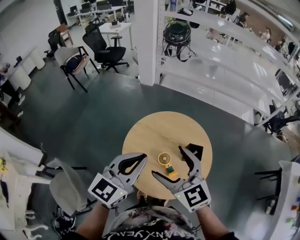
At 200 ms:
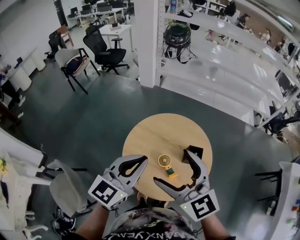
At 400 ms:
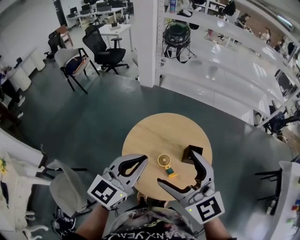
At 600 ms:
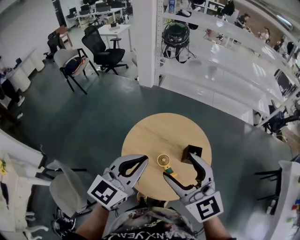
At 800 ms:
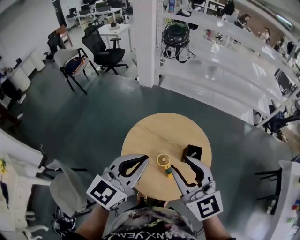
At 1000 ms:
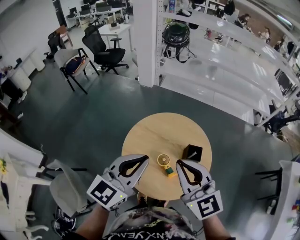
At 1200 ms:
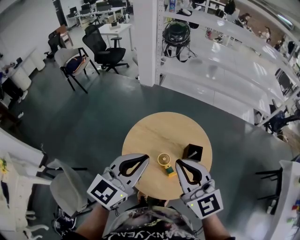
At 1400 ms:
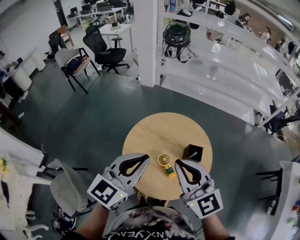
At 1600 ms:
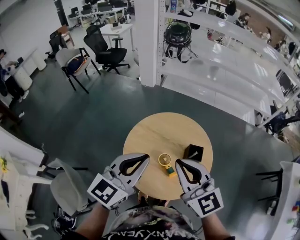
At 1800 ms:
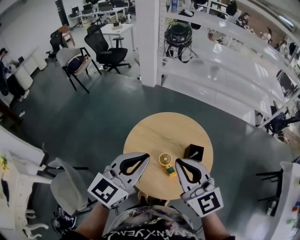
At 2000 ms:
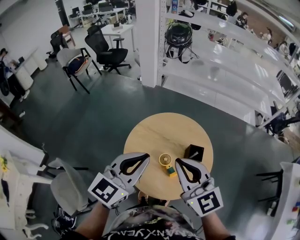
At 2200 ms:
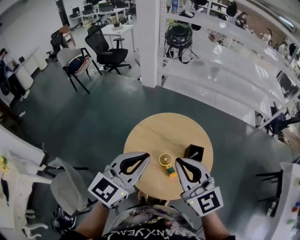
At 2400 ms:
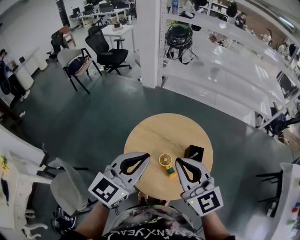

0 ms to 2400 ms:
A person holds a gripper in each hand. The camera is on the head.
0 ms to 1200 ms: The right gripper shifts by about 5 cm, and closes its fingers.
1200 ms to 2400 ms: Both grippers stay put.

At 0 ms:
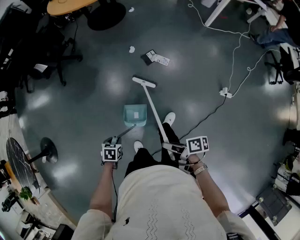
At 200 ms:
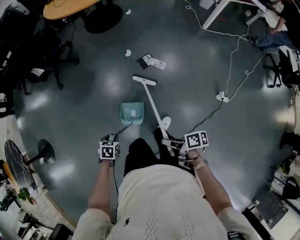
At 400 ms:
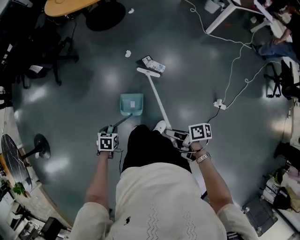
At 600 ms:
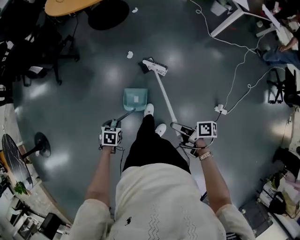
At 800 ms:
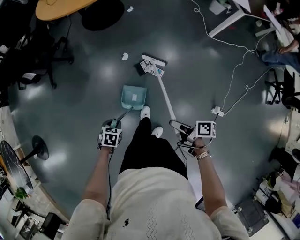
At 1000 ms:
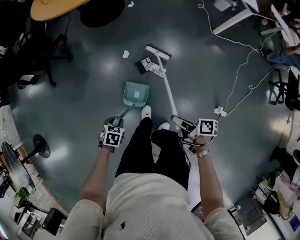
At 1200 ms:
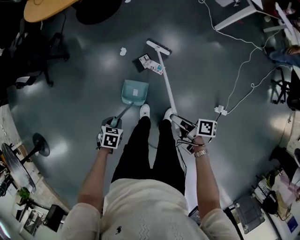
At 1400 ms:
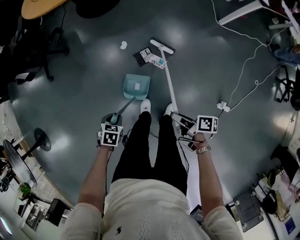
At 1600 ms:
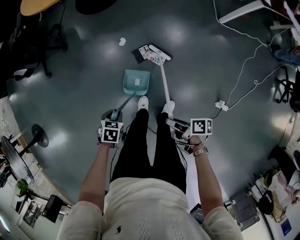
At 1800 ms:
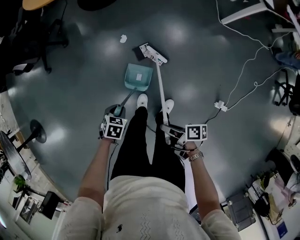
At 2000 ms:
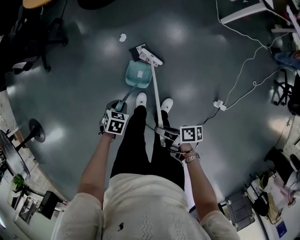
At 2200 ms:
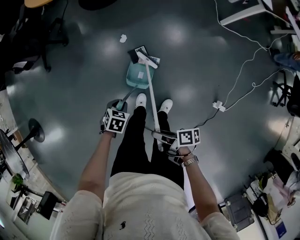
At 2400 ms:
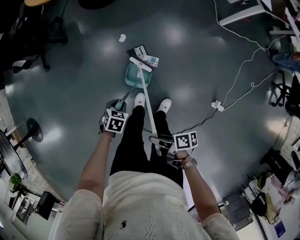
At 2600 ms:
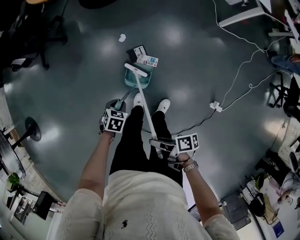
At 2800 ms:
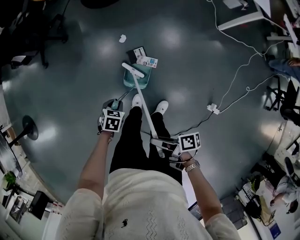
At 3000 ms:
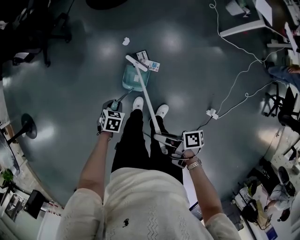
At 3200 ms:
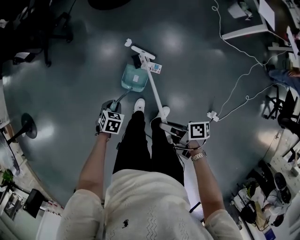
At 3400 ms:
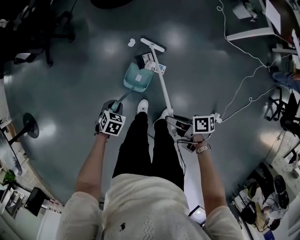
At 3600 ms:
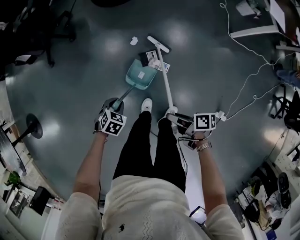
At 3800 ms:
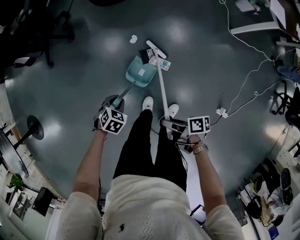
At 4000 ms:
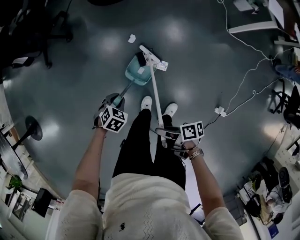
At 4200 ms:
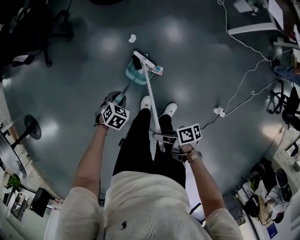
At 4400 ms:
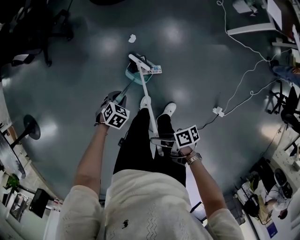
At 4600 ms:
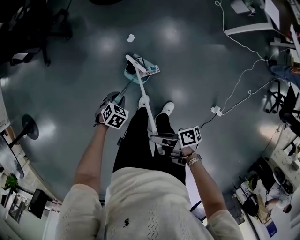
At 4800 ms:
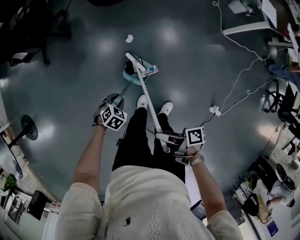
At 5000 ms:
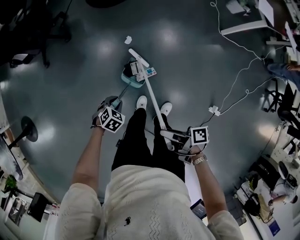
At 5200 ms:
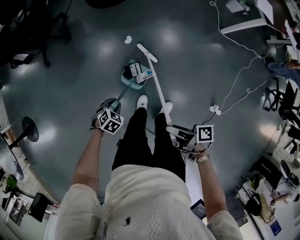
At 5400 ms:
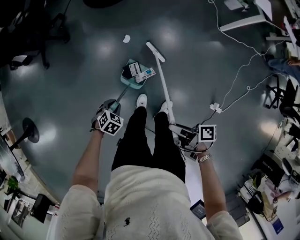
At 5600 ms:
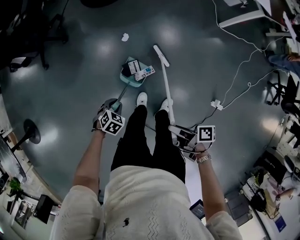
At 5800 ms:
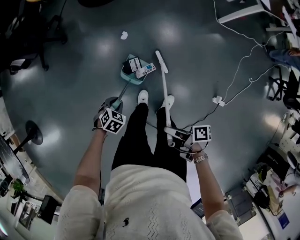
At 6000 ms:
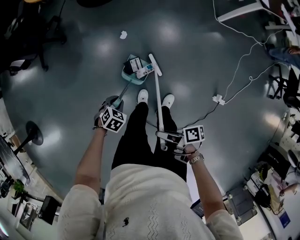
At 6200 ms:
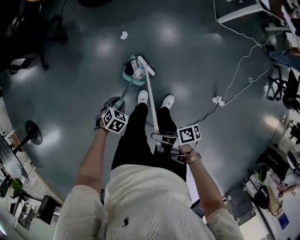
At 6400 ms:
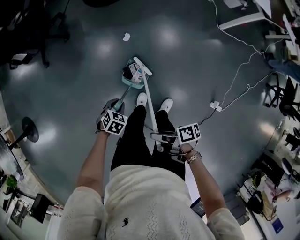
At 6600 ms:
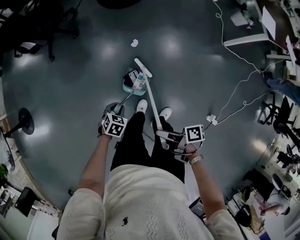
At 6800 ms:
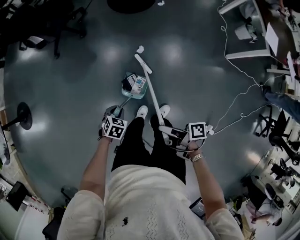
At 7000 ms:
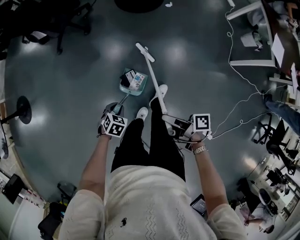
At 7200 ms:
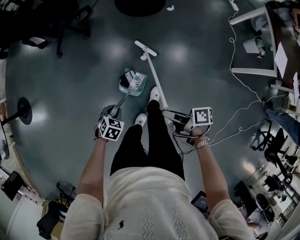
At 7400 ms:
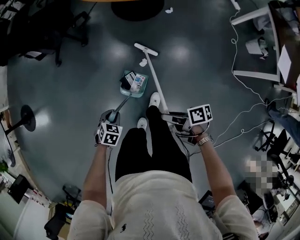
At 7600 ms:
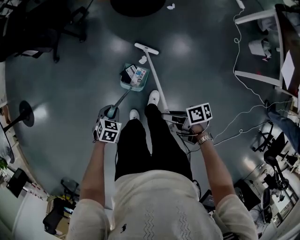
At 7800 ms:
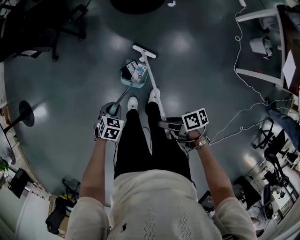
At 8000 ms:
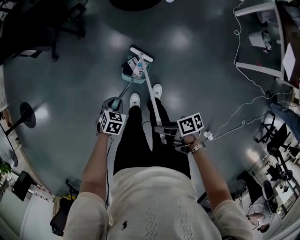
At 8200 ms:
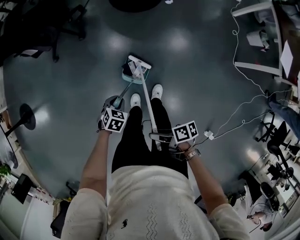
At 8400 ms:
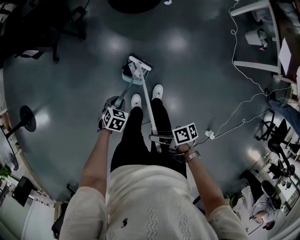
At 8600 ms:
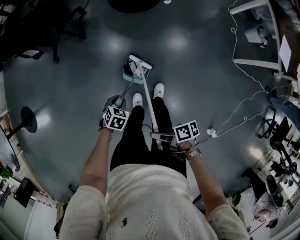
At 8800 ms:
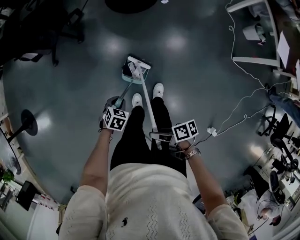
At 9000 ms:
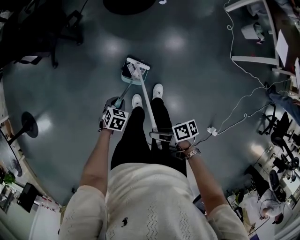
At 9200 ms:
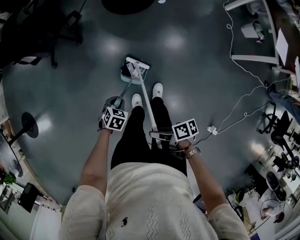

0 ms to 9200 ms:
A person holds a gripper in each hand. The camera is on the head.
0 ms to 1600 ms: The left gripper changes place by roughly 40 cm.
3000 ms to 4600 ms: The left gripper changes place by some 10 cm.
4600 ms to 6200 ms: The left gripper shifts by roughly 10 cm.
6200 ms to 7600 ms: The left gripper shifts by some 25 cm, and rotates some 30 degrees.

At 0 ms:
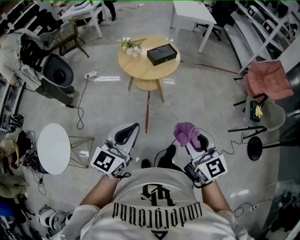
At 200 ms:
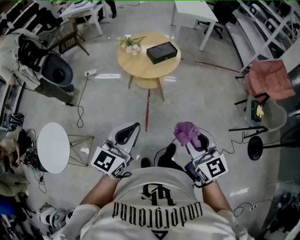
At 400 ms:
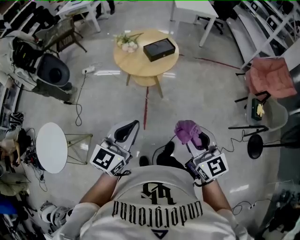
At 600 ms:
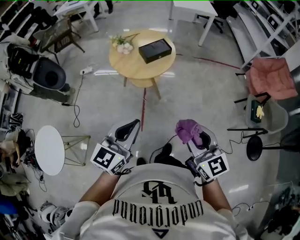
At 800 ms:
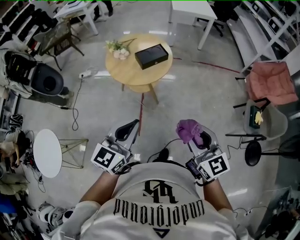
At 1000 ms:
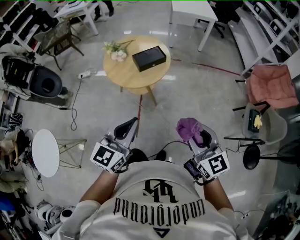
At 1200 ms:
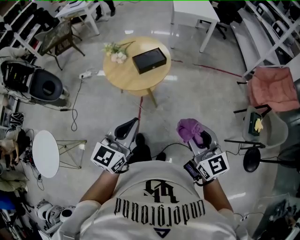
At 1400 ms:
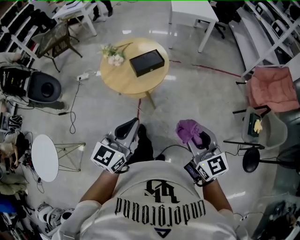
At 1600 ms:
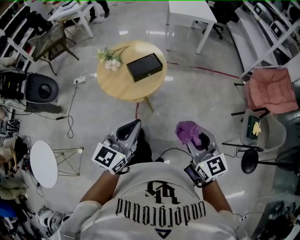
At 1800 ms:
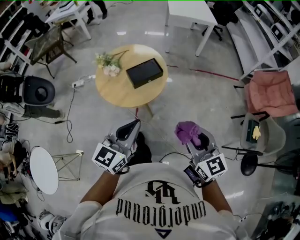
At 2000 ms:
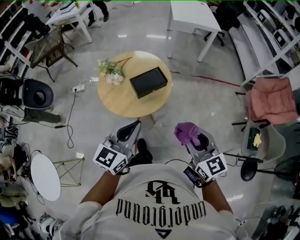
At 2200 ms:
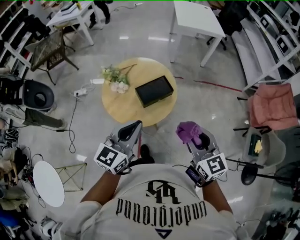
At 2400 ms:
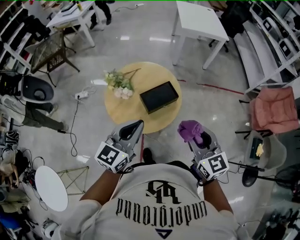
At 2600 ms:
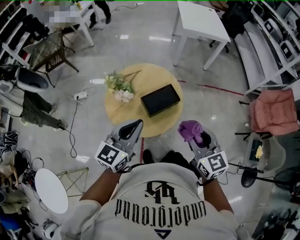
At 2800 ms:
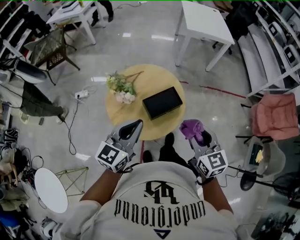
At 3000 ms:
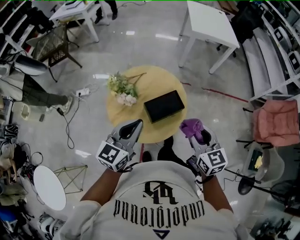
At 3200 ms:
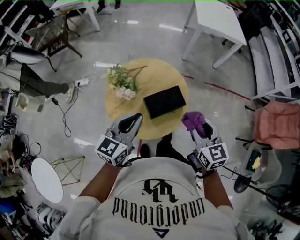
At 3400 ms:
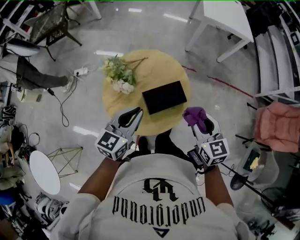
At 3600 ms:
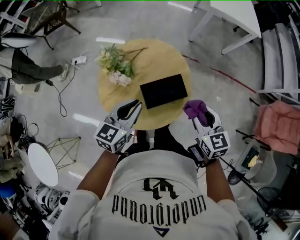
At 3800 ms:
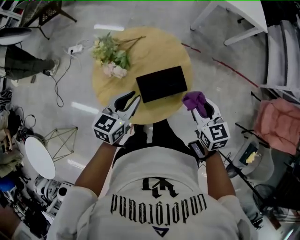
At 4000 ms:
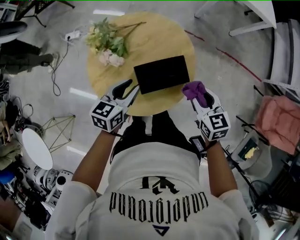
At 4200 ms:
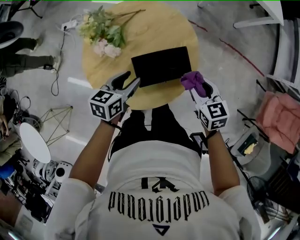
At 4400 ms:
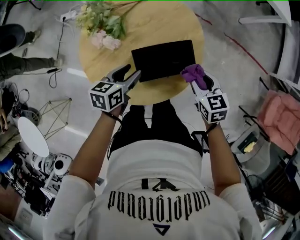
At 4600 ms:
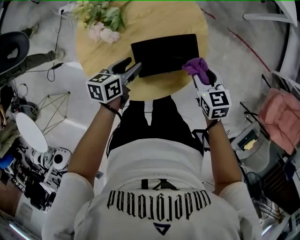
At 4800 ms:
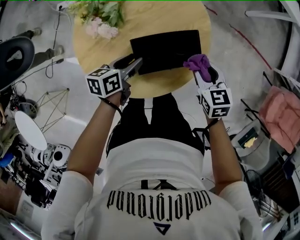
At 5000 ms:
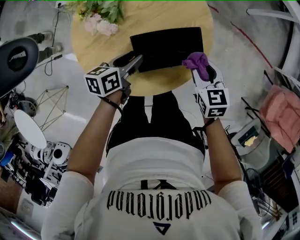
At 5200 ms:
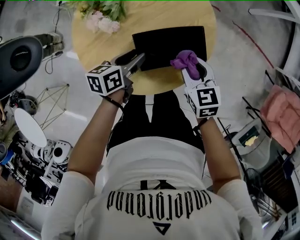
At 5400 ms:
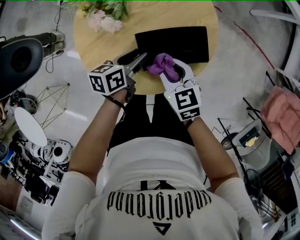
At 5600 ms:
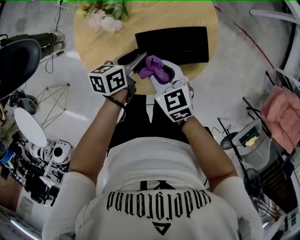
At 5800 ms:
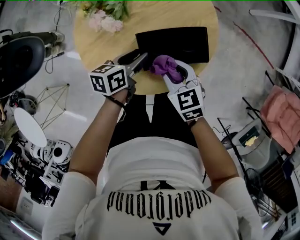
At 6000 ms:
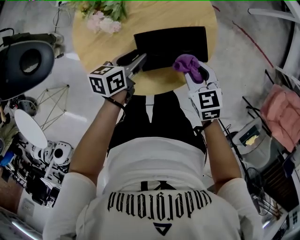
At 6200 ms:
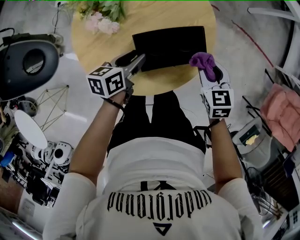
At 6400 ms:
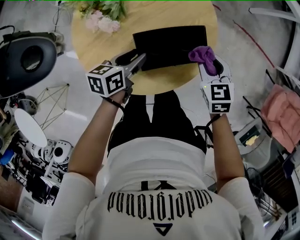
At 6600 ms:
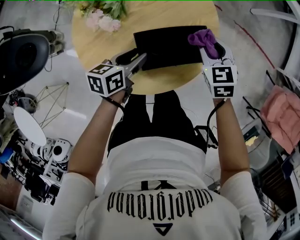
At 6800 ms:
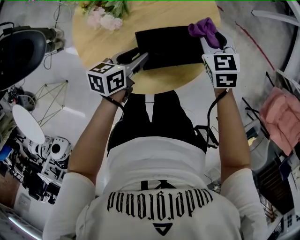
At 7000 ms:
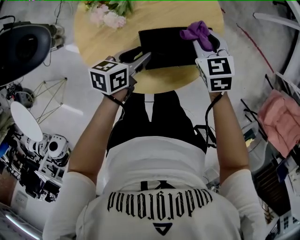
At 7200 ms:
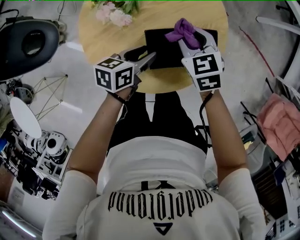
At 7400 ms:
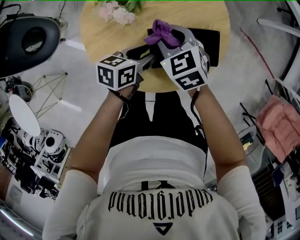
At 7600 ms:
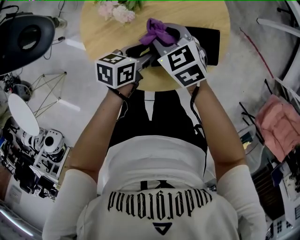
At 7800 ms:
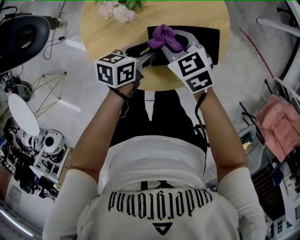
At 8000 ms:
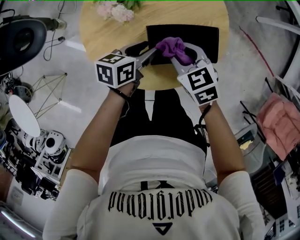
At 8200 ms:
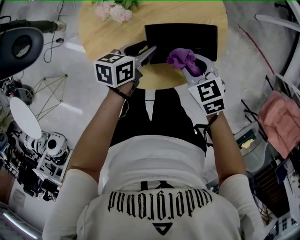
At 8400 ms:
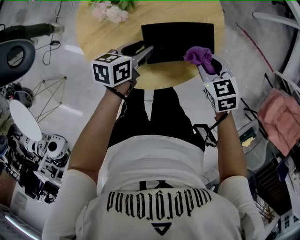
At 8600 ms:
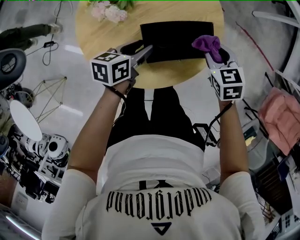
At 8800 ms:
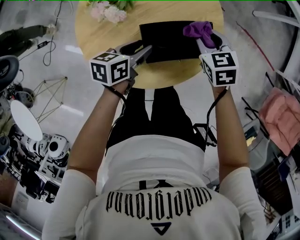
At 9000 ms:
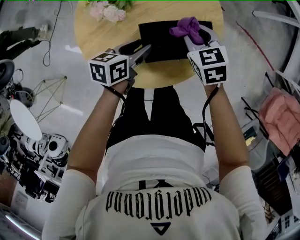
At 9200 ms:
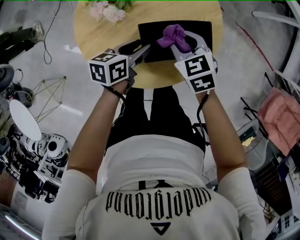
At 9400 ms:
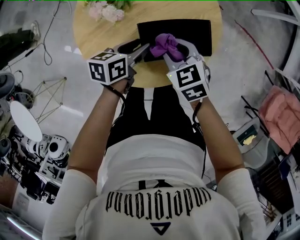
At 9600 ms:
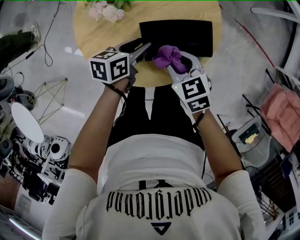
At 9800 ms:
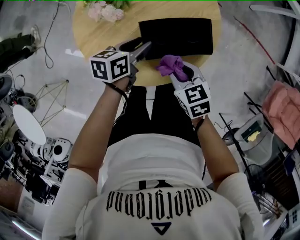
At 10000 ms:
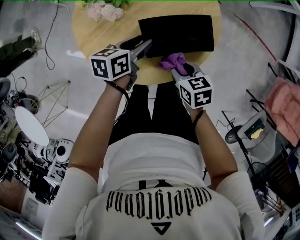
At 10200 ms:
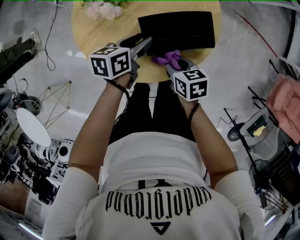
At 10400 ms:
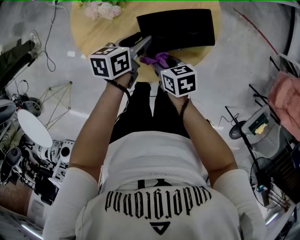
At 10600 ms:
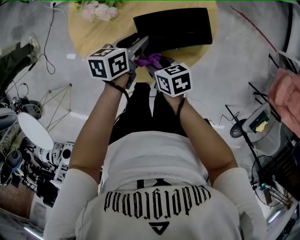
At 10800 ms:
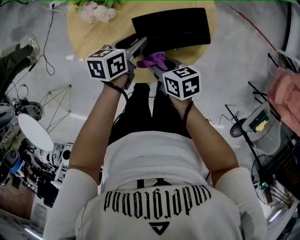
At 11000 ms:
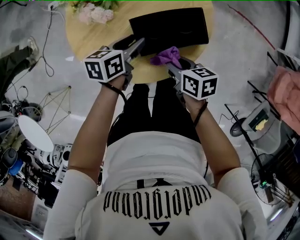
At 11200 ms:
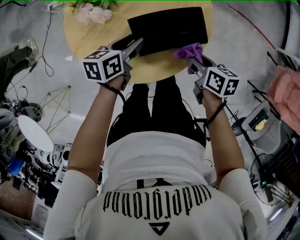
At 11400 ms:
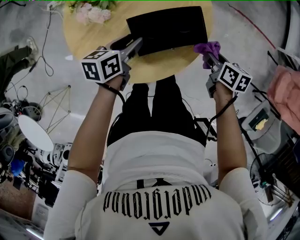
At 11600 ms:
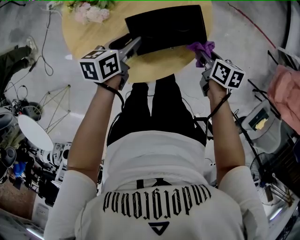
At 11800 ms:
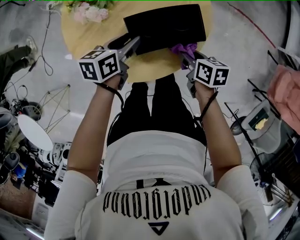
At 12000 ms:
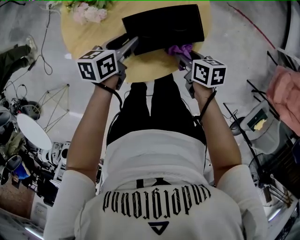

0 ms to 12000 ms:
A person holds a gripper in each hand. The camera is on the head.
0 ms to 1600 ms: Both grippers travel together forward and to the right, some 35 cm.
1600 ms to 3000 ms: The left gripper goes about 35 cm forward and to the left; the right gripper heads forward, covering some 35 cm.
3000 ms to 4400 ms: The right gripper is displaced downward and forward by approximately 35 cm, and rotates roughly 30 degrees, while the left gripper is displaced downward by approximately 35 cm, angles its fingers downward, by roughly 30 degrees, and opens.
4400 ms to 6000 ms: The right gripper reaches some 20 cm to the left, then returns.
6000 ms to 7600 ms: The right gripper heads to the left, covering some 20 cm, and changes its angle by approximately 20 degrees.
7600 ms to 9000 ms: The right gripper heads to the right, covering about 15 cm.
9000 ms to 10400 ms: The right gripper shifts some 20 cm backward and to the left, and rotates roughly 40 degrees.
10400 ms to 12000 ms: The right gripper moves to the right, about 15 cm.
